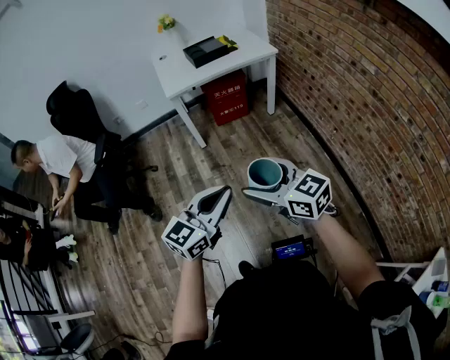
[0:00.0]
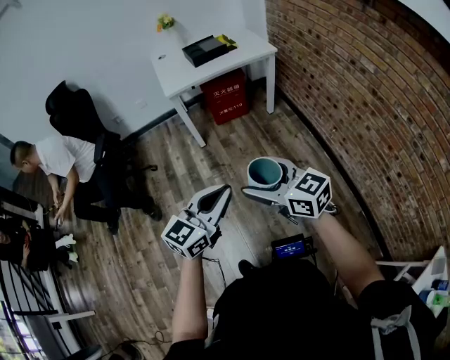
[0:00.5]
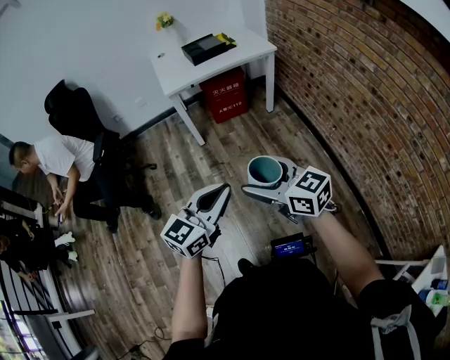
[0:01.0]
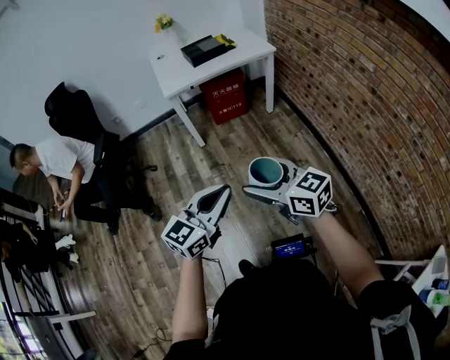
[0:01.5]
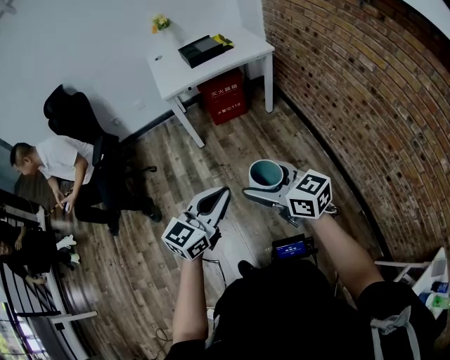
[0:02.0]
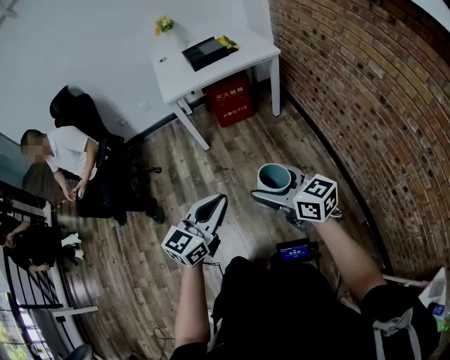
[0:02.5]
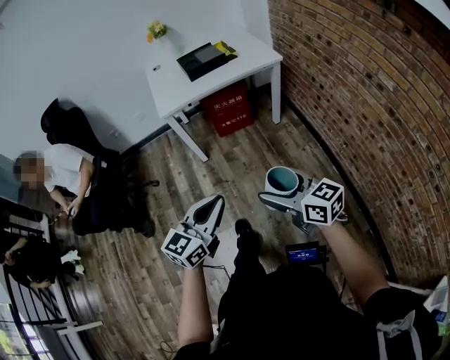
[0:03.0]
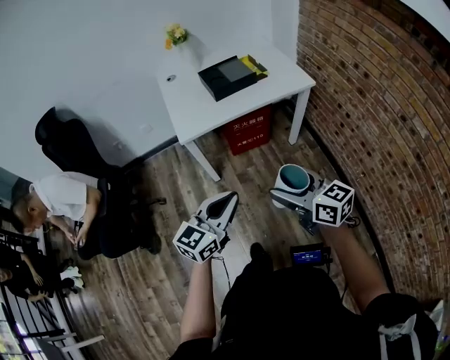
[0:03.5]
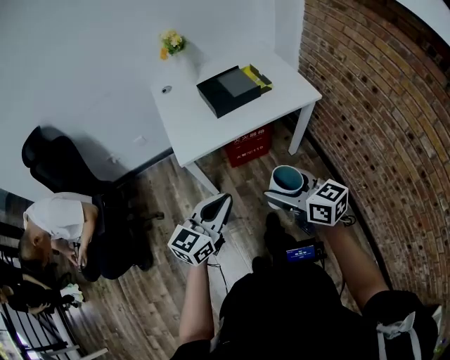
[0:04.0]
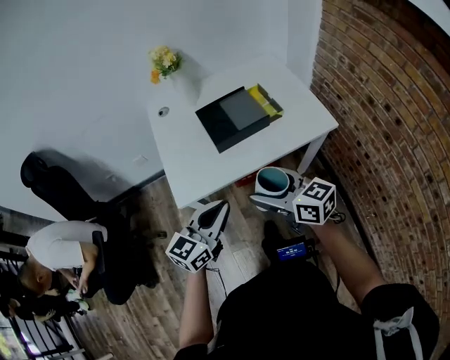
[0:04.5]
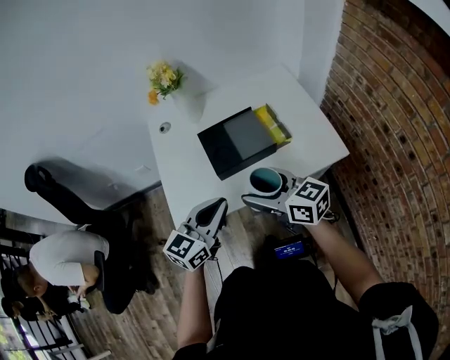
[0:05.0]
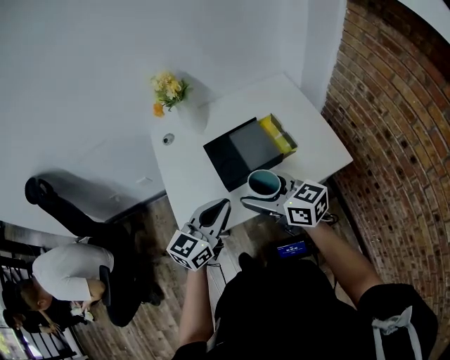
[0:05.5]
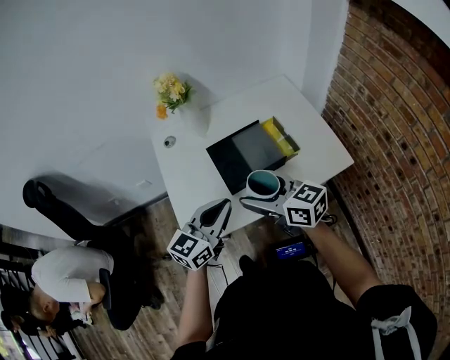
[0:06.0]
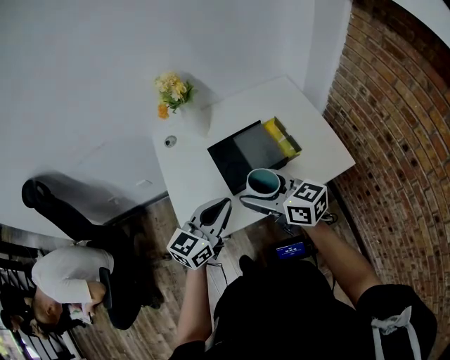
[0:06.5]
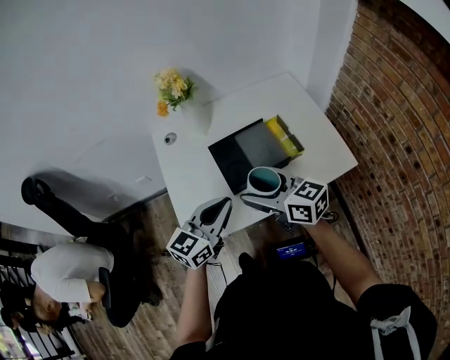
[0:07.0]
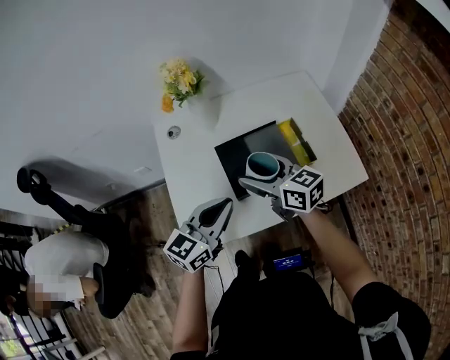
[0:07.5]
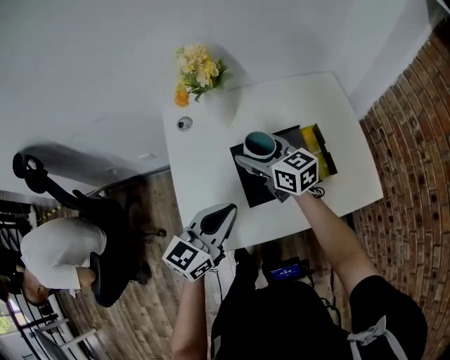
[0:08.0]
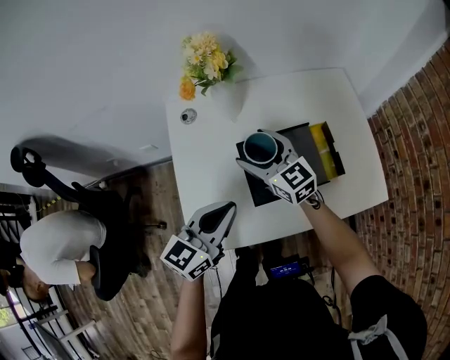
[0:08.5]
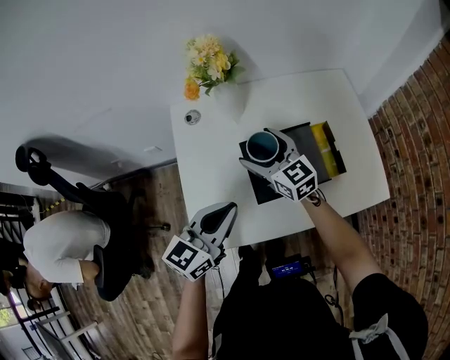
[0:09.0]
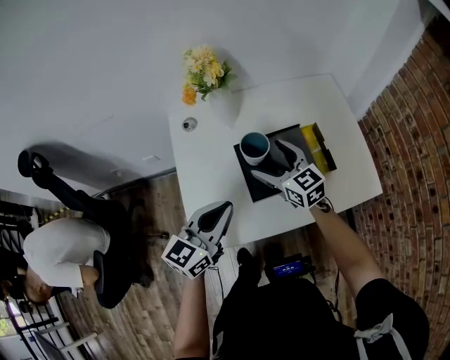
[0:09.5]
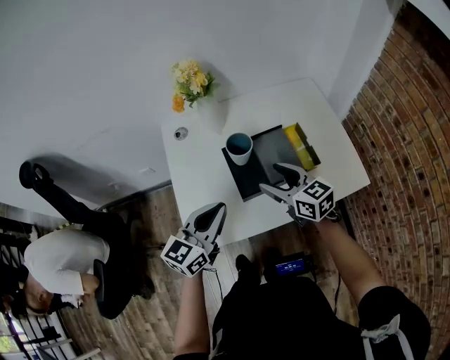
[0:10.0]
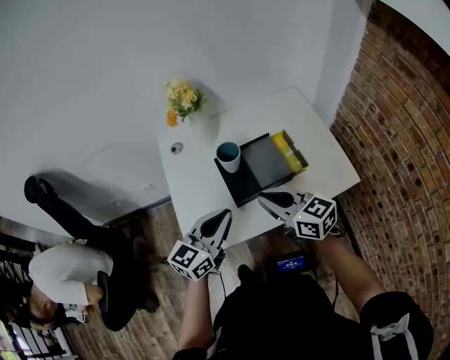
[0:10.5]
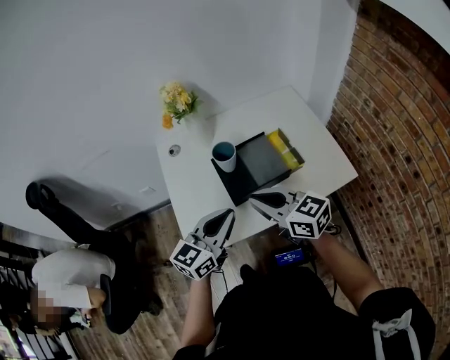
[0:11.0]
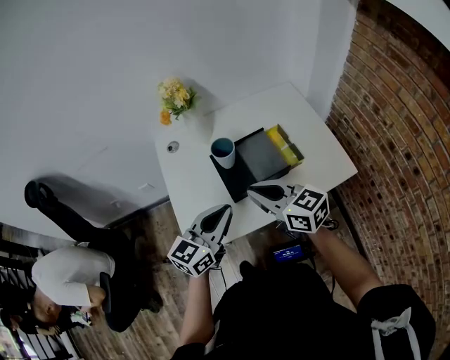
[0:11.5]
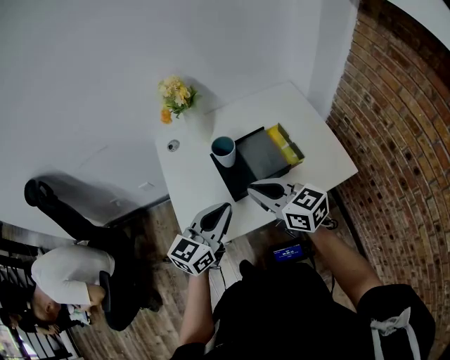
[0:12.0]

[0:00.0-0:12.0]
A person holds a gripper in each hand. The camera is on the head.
0:00.0 to 0:02.0: The grippers make only small movements.
0:02.0 to 0:04.0: The pair of grippers is taken forward, roughly 50 cm.
0:04.0 to 0:06.0: Both grippers move forward, about 35 cm.
0:06.0 to 0:08.0: The left gripper goes some 10 cm forward; the right gripper moves forward, roughly 20 cm.
0:08.0 to 0:10.0: The right gripper goes roughly 15 cm backward and to the right.
0:10.0 to 0:12.0: The right gripper shifts roughly 10 cm upward and backward, and closes; the left gripper ends up some 5 cm from where it was.

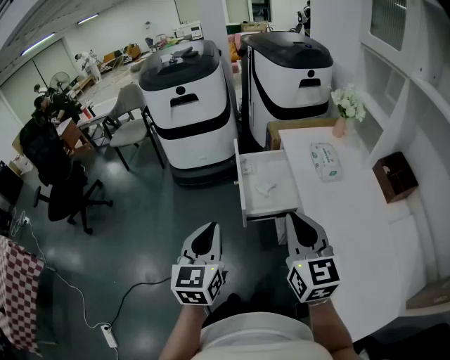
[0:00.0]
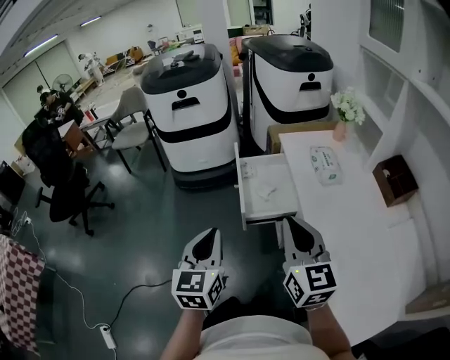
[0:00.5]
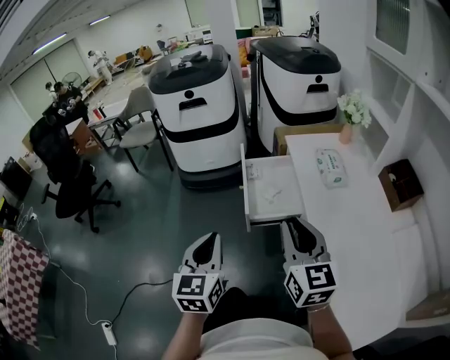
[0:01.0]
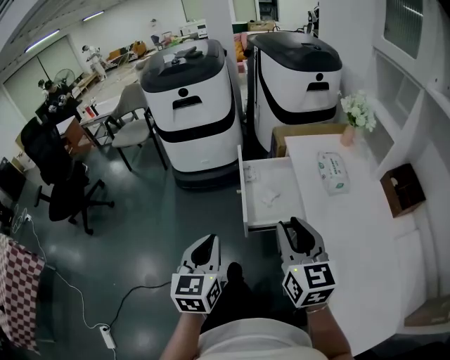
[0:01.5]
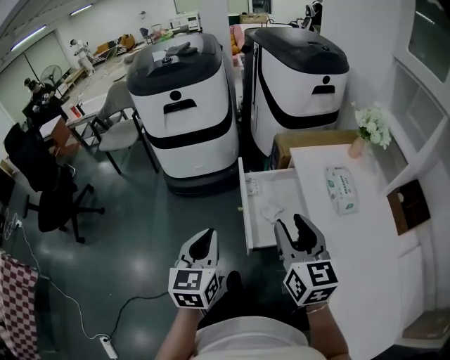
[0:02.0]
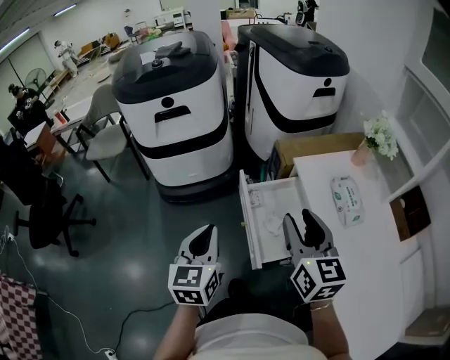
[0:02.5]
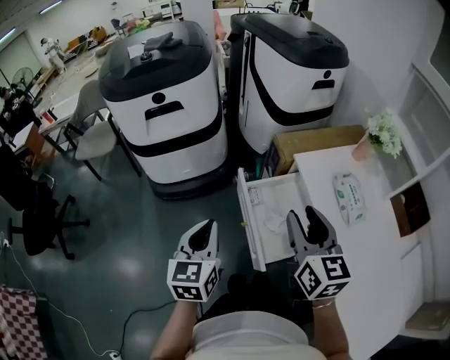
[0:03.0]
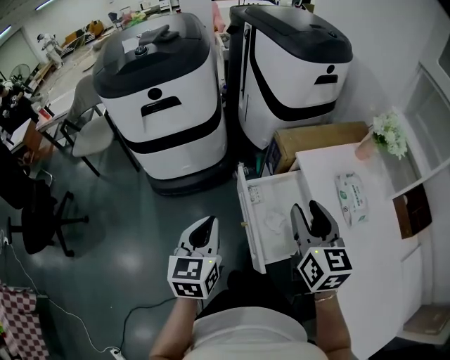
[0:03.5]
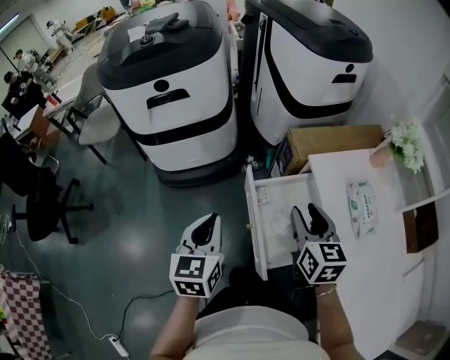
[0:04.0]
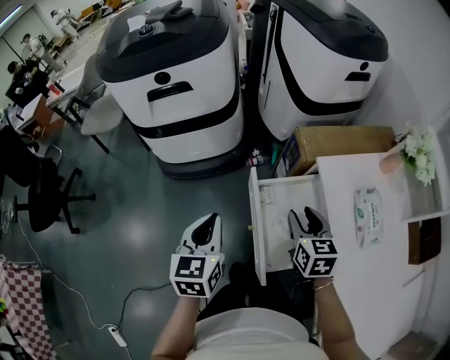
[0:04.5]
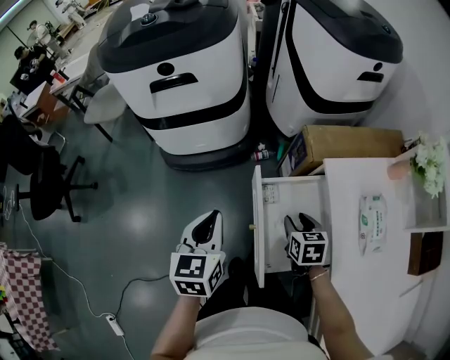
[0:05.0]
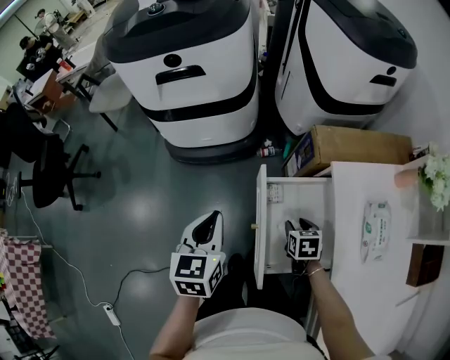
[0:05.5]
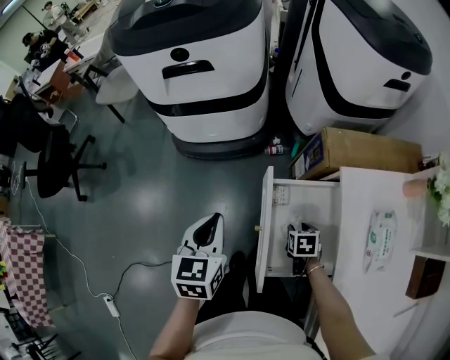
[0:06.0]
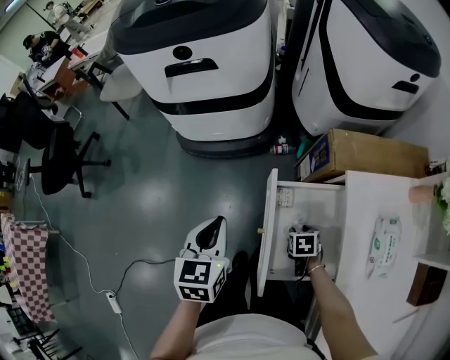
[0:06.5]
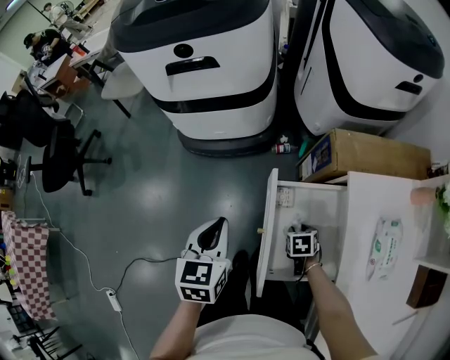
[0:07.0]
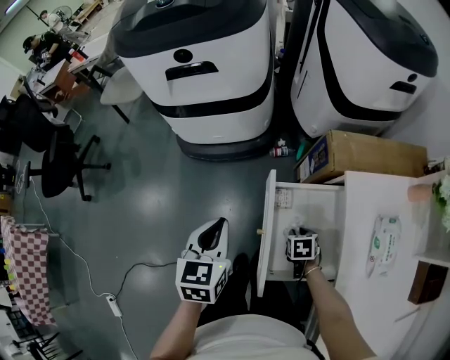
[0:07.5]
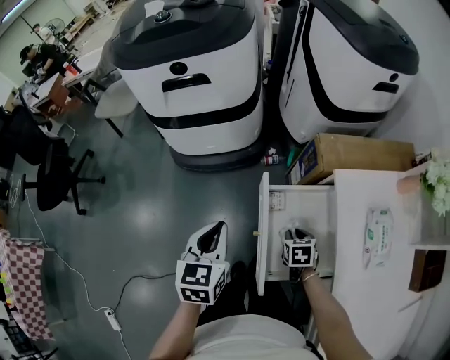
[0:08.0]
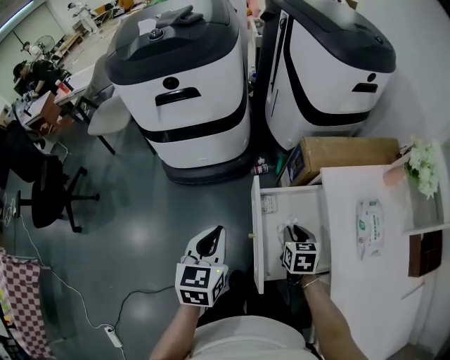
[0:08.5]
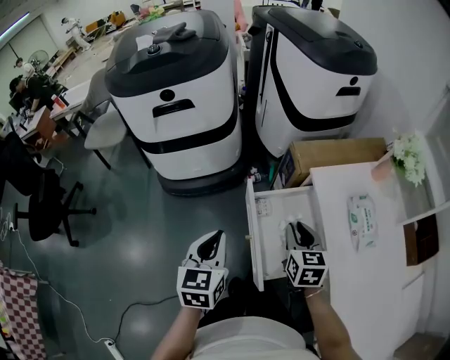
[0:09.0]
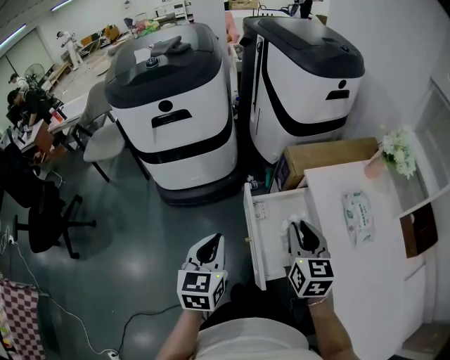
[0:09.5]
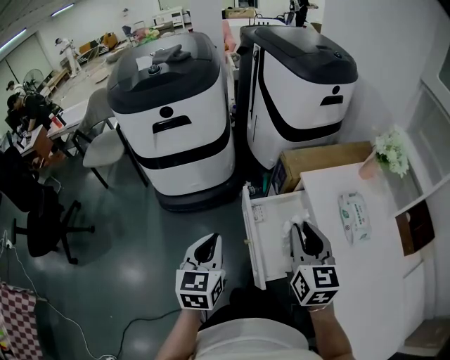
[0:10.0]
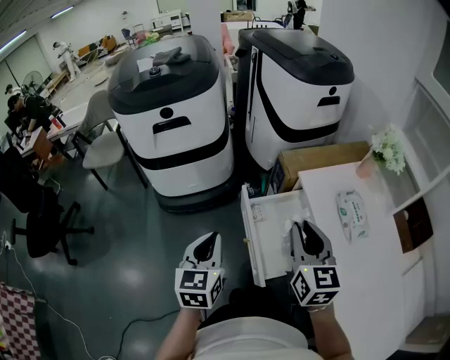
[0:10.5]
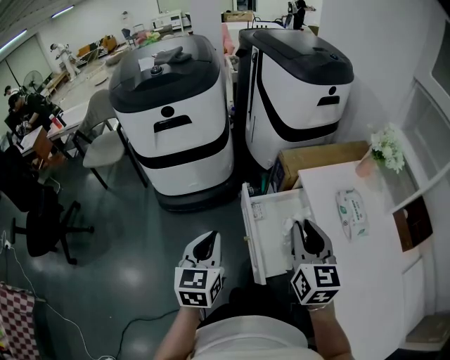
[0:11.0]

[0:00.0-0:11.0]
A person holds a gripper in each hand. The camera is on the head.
0:00.0 to 0:02.0: Both grippers travel together forward, about 15 cm. The right gripper opens.
0:02.0 to 0:03.5: Both grippers travel together forward, some 15 cm.
0:03.5 to 0:05.5: The right gripper moves downward, some 30 cm, and angles its fingers downward, by approximately 50 degrees. The left gripper is displaced downward by about 5 cm.
0:05.5 to 0:07.5: The right gripper shifts roughly 5 cm downward.
0:07.5 to 0:09.0: The right gripper moves upward, approximately 25 cm, and tips its fingers upward by approximately 40 degrees; the left gripper shifts by approximately 5 cm.
0:09.0 to 0:11.0: The right gripper heads upward, covering approximately 15 cm, and changes its angle by about 20 degrees.

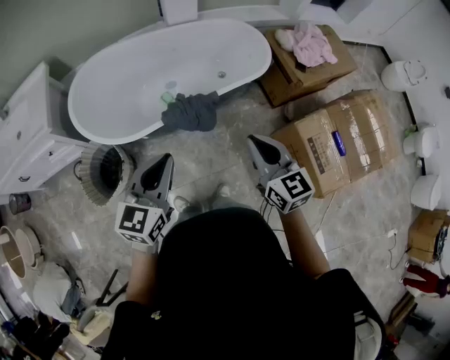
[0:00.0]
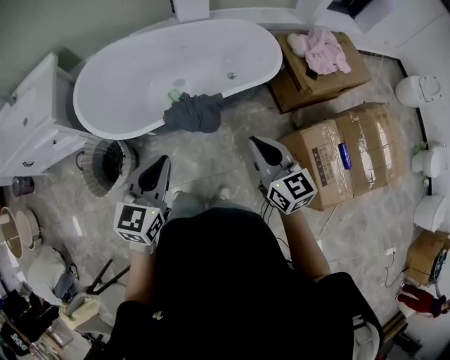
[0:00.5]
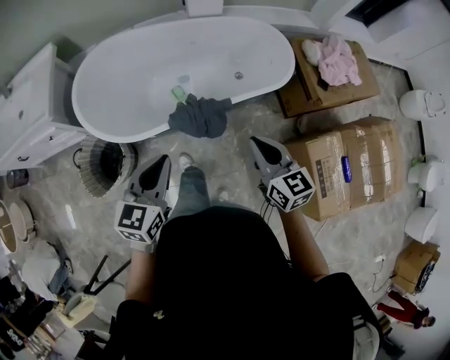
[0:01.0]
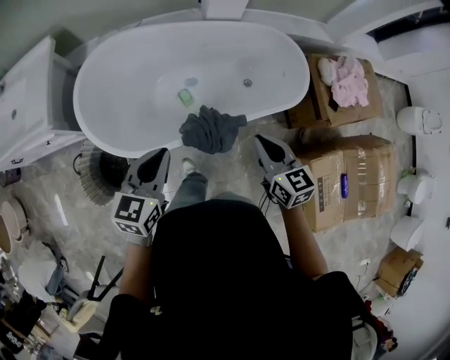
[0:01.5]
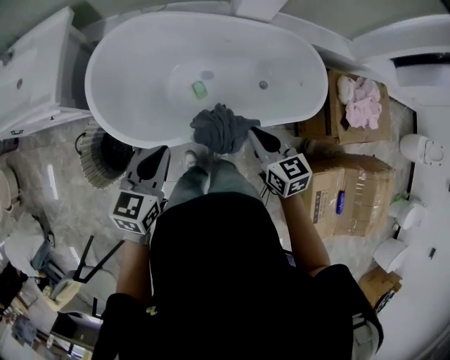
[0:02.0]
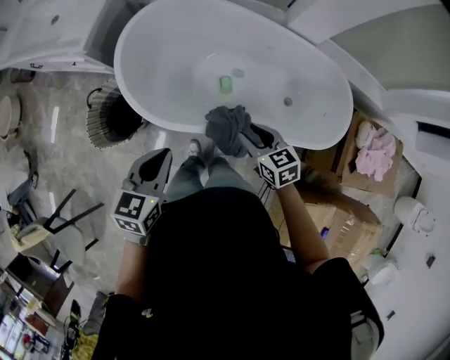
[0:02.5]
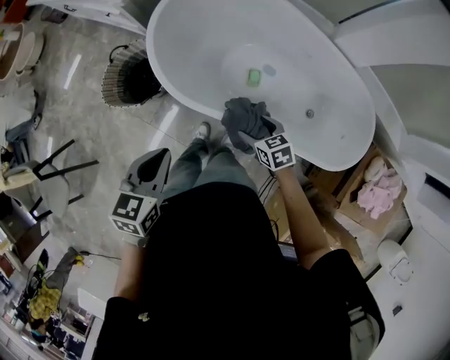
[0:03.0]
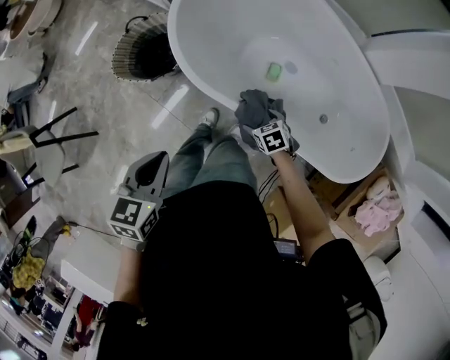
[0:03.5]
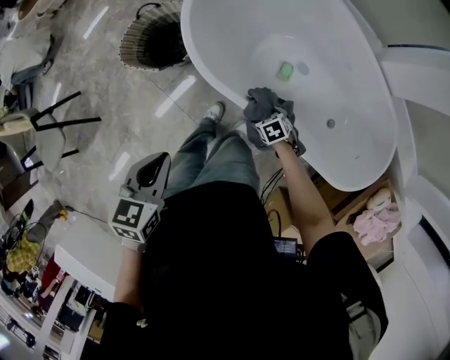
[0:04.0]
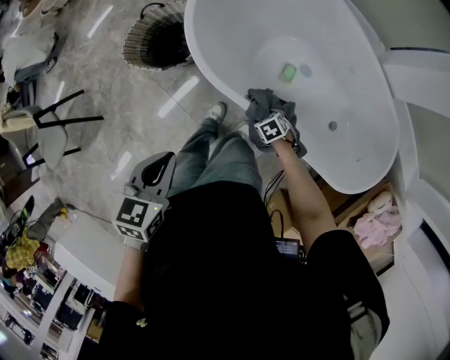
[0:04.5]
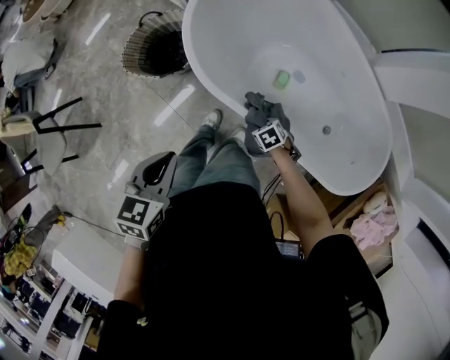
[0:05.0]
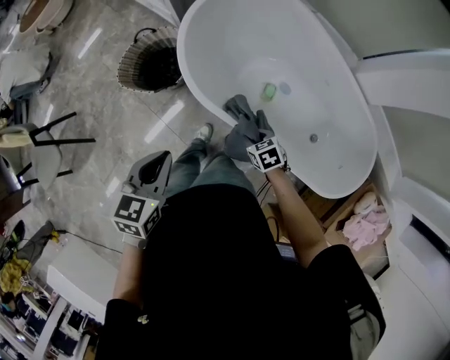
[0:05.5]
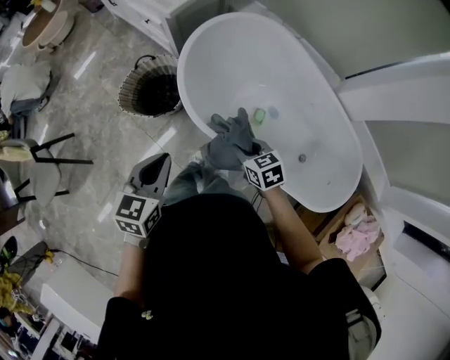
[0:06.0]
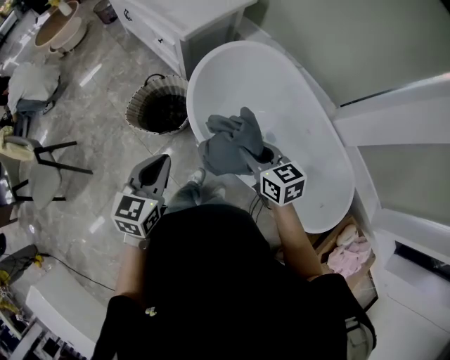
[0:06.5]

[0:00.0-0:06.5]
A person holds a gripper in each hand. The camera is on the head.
0:00.0 to 0:02.0: Both grippers travel together forward, to the left and downward, approximately 35 cm. The left gripper rotates some 20 degrees. The right gripper rotates some 30 degrees.
0:02.0 to 0:04.5: The right gripper travels downward by some 40 cm, points its fingers roughly 40 degrees further downward, and opens its fingers. The left gripper ends up approximately 20 cm from where it was, and turns by approximately 50 degrees.
0:04.5 to 0:06.5: The right gripper is displaced upward by about 50 cm, tips its fingers upward by some 40 degrees, and closes its fingers. Meanwhile the left gripper shifts approximately 15 cm upward, and changes its angle by roughly 20 degrees.
